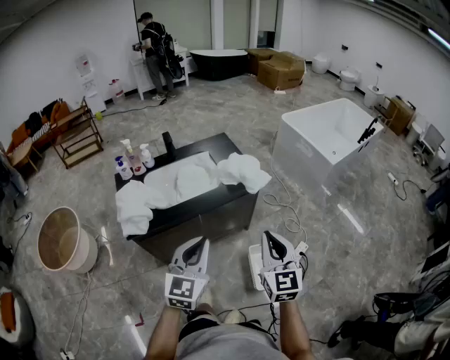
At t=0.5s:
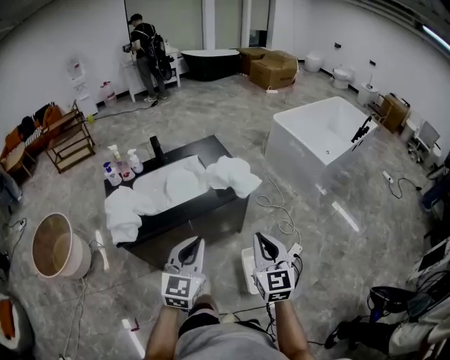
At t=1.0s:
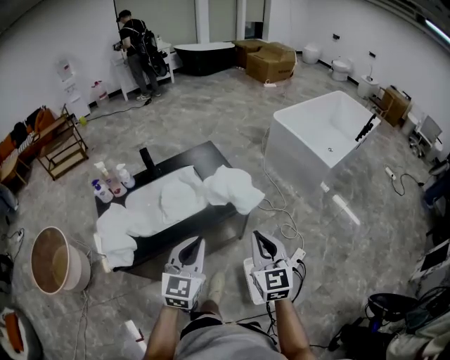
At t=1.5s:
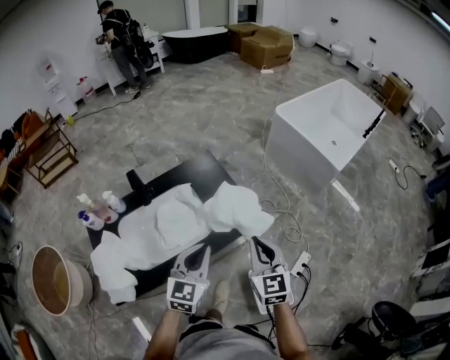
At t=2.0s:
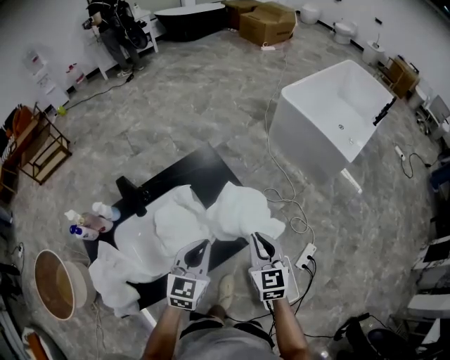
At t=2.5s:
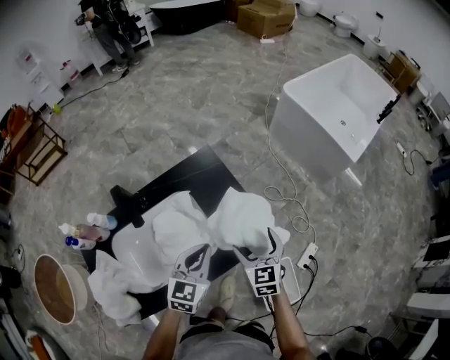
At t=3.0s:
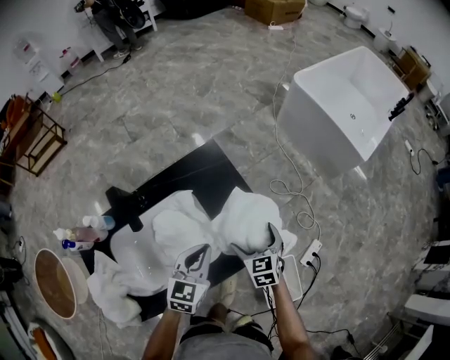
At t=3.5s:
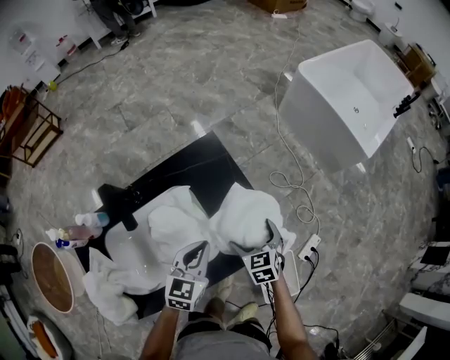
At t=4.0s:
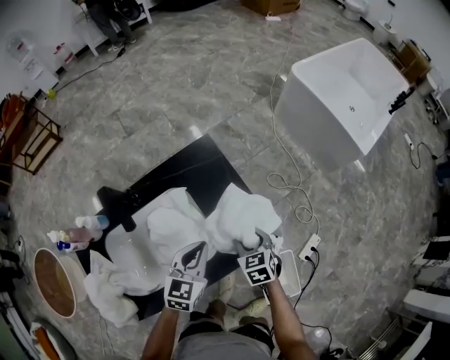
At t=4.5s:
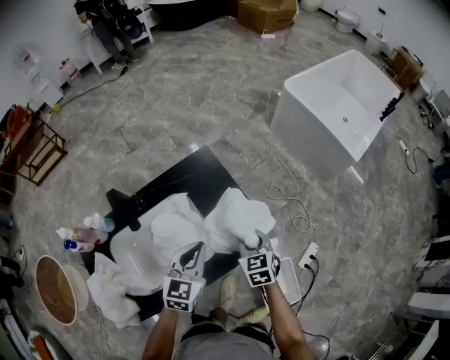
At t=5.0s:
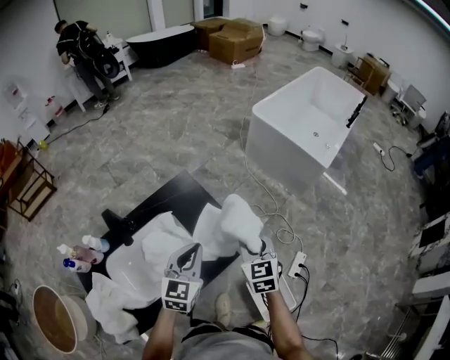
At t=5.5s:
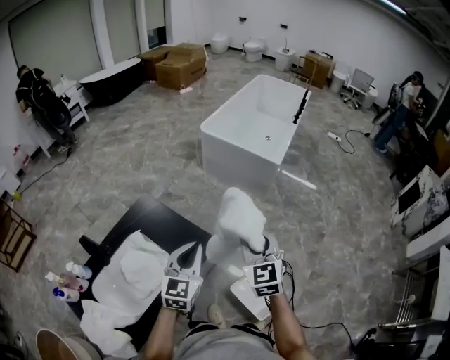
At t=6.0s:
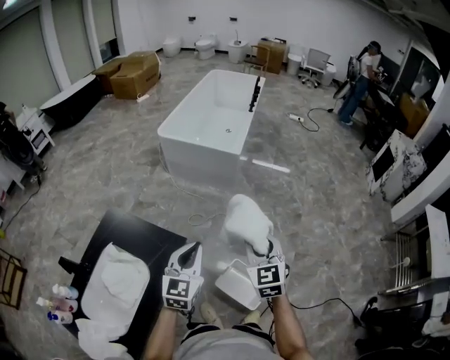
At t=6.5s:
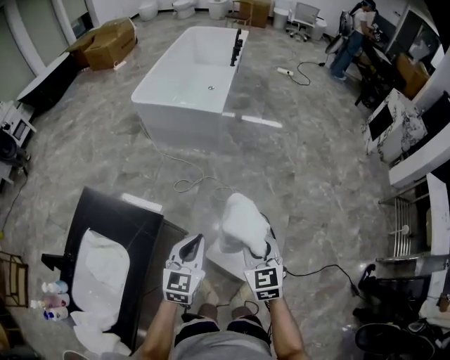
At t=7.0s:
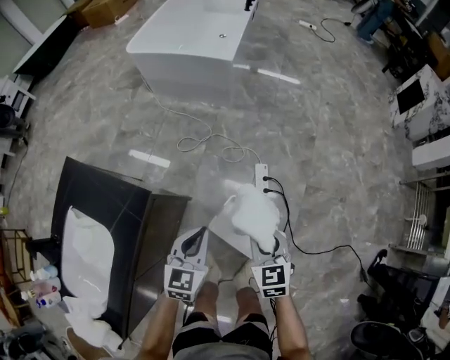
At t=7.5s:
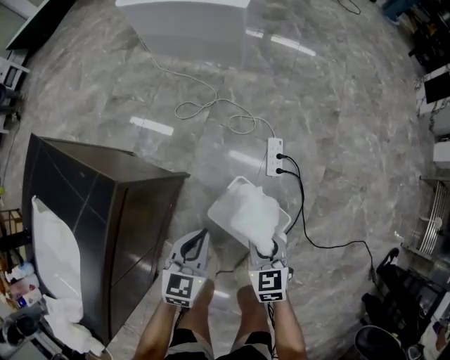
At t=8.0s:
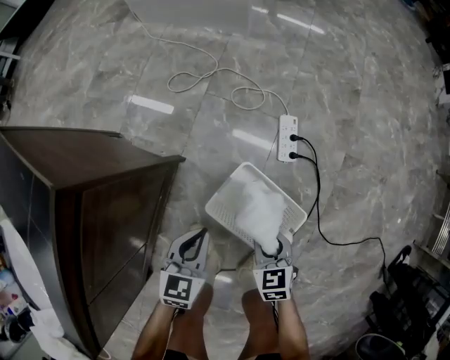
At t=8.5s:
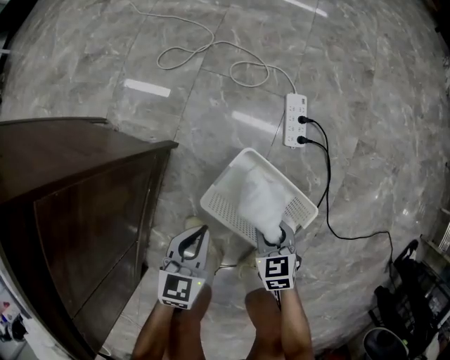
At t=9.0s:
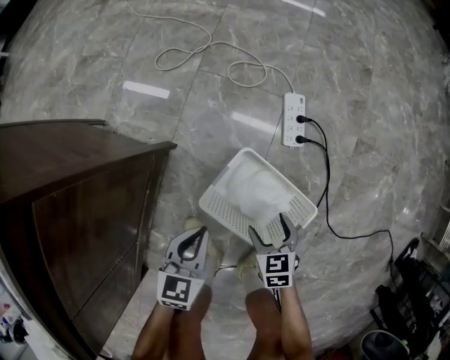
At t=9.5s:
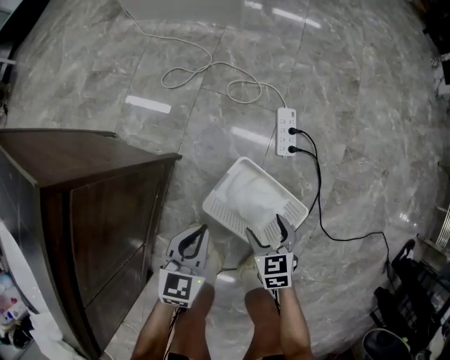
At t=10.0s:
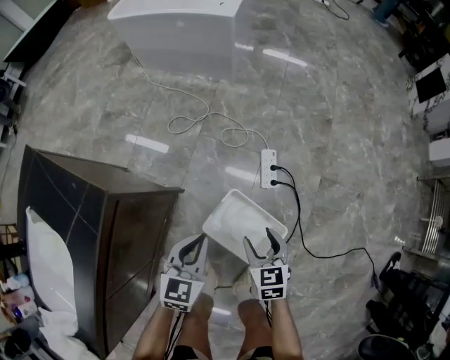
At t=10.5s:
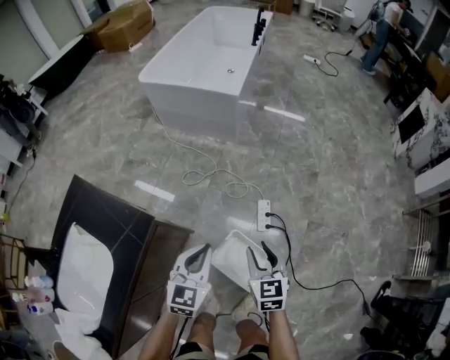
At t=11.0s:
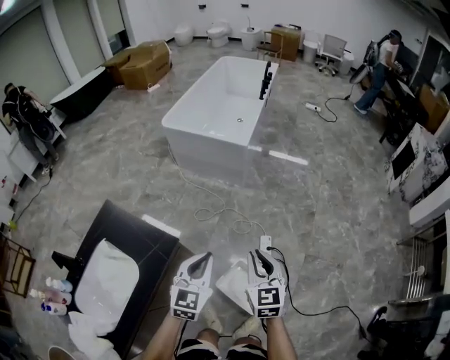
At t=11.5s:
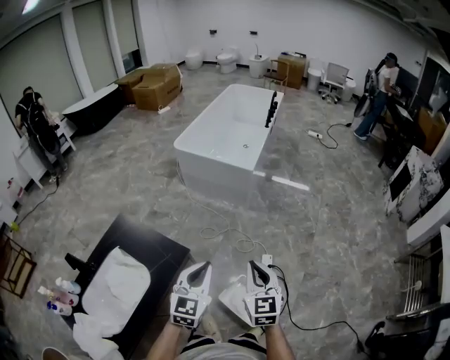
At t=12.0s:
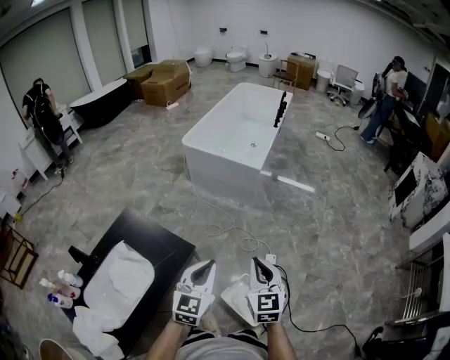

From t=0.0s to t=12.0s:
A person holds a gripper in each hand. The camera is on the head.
From t=0.0s to t=2.0s: Both grippers are carried forward, roughly 40 cm.
From t=2.0s to t=4.0s: The right gripper shifts roughly 20 cm downward and forward, turns by some 30 degrees, and opens, then closes once more. Meanwhile the left gripper moves downward and forward, roughly 15 cm.
From t=4.0s to t=6.0s: The left gripper ends up some 35 cm from where it was, and swivels roughly 40 degrees. The right gripper shifts by about 50 cm, and tilts its fingers about 30 degrees upward.
From t=6.0s to t=8.0s: The grippers both shift downward by about 70 cm. The right gripper tips its fingers downward by some 30 degrees. Meanwhile the left gripper swivels roughly 30 degrees.
From t=8.0s to t=10.0s: The grippers both shift upward by roughly 15 cm.
From t=10.0s to t=12.0s: Both grippers travel together upward, approximately 50 cm. The right gripper turns by roughly 30 degrees, and closes up. Meanwhile the left gripper swivels approximately 20 degrees.

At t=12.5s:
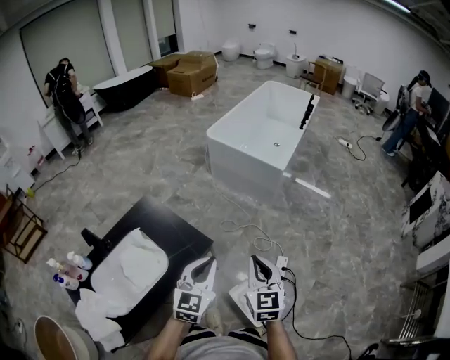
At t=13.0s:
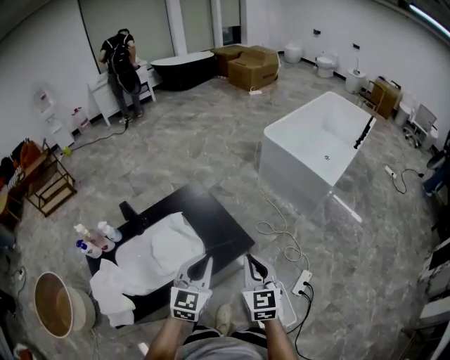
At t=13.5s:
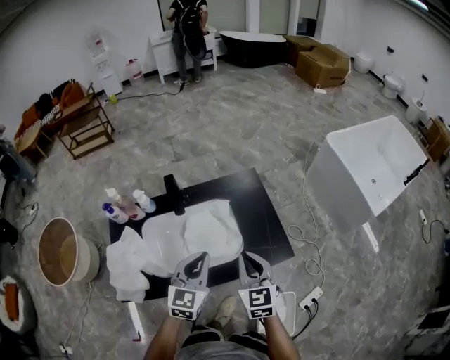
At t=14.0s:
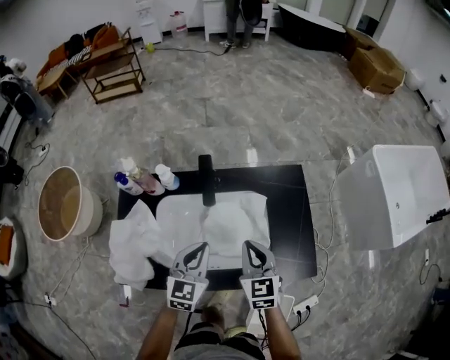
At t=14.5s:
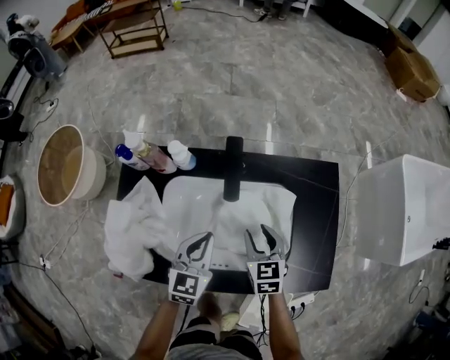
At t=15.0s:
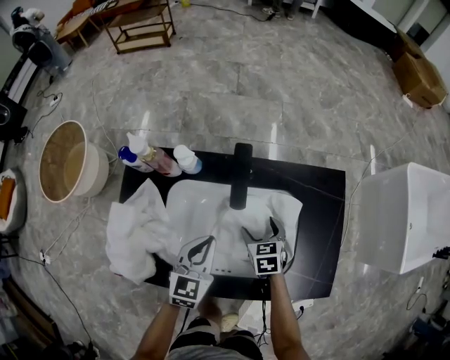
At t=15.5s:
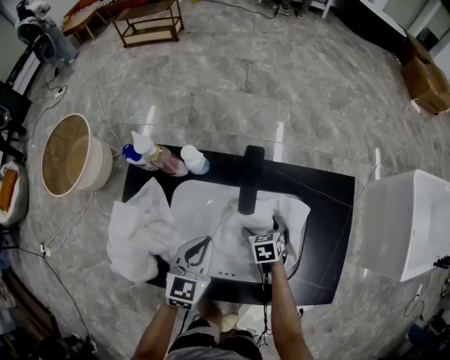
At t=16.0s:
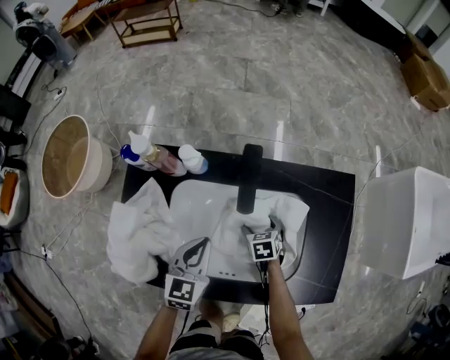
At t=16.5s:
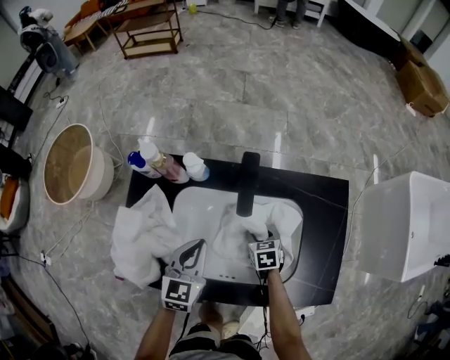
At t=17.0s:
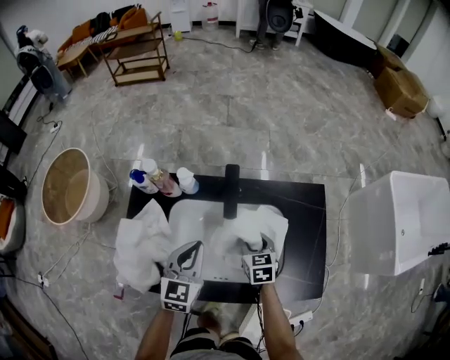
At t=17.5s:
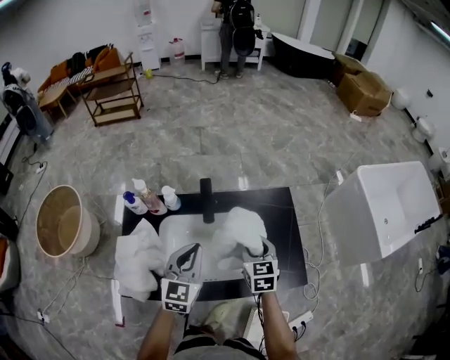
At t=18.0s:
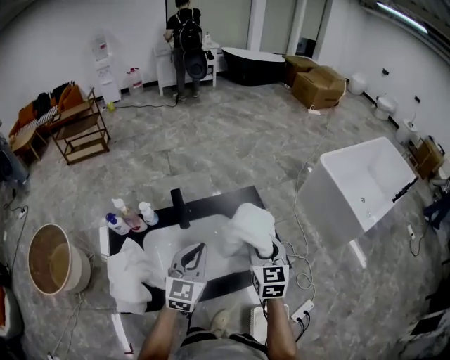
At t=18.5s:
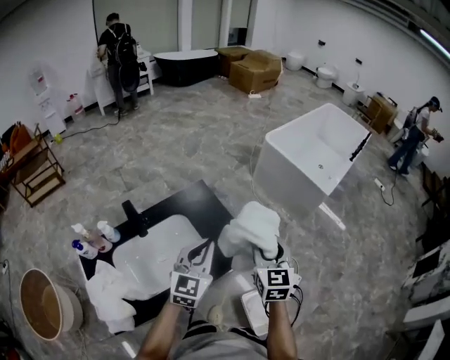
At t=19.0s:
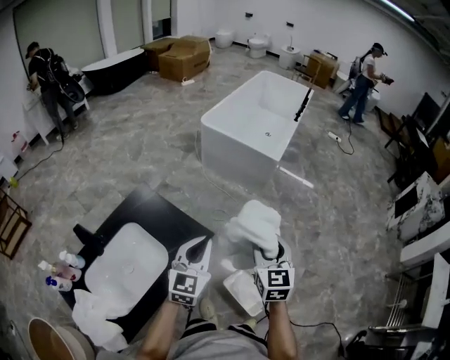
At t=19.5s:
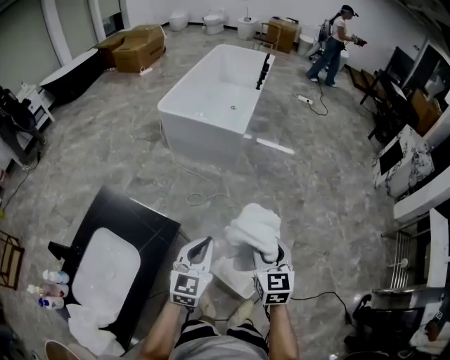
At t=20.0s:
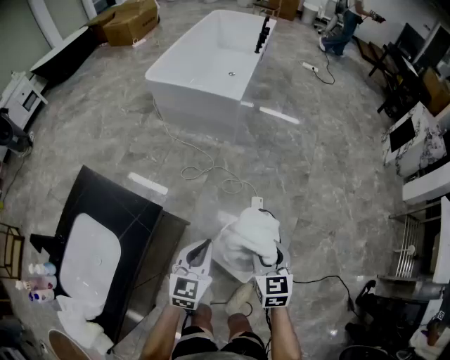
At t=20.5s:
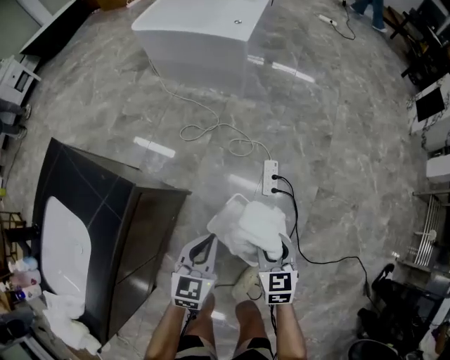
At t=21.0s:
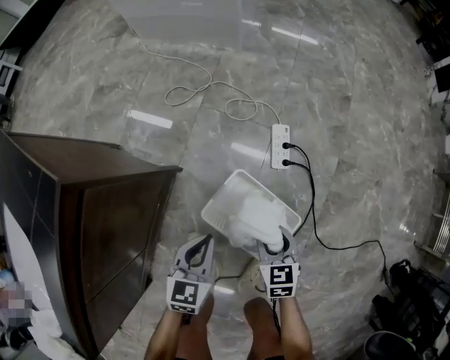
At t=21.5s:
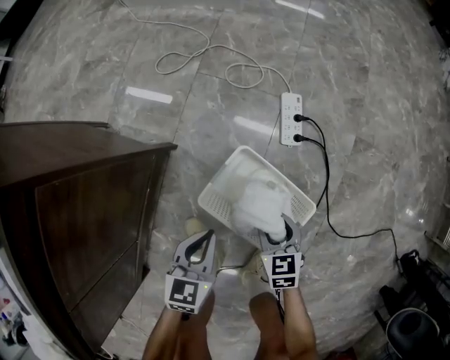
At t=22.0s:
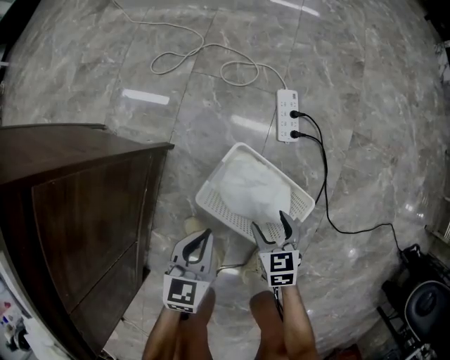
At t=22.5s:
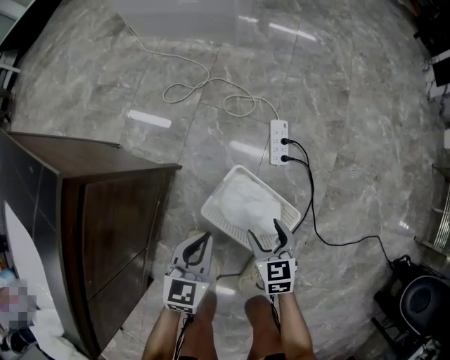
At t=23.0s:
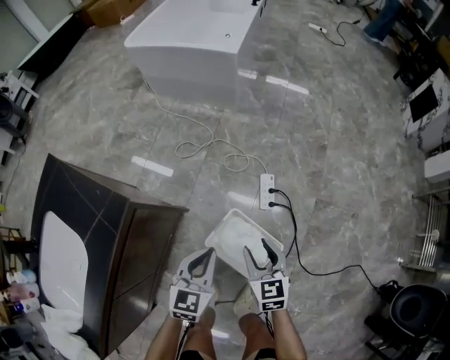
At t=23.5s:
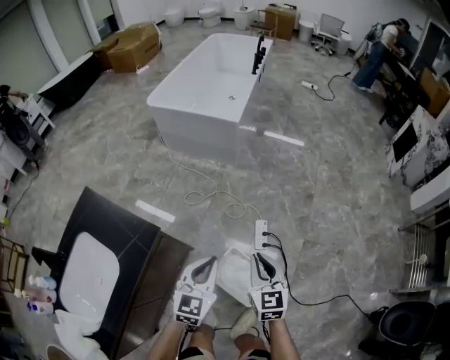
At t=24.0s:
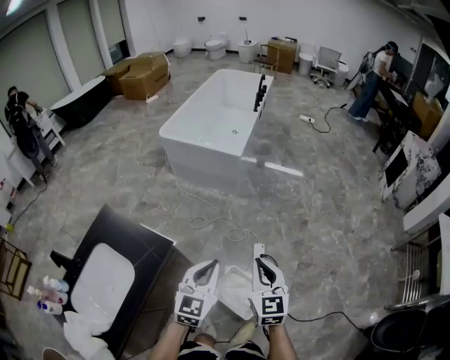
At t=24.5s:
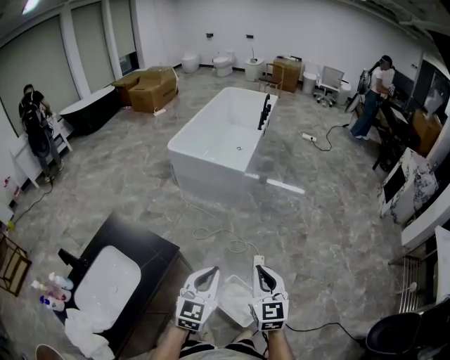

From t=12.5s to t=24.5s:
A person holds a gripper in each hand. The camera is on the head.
From t=12.5s to t=14.5s: Both grippers are carried some 50 cm. The left gripper rotates about 60 degrees, while the right gripper swivels about 60 degrees.
From t=14.5s to t=16.5s: The right gripper travels downward by about 15 cm, changes its angle by roughly 20 degrees, and opens and closes again. Meanwhile the left gripper moves to the left, roughly 5 cm.
From t=16.5s to t=18.5s: The right gripper goes approximately 40 cm upward, and angles its fingers upward, by some 40 degrees. The left gripper ends up some 40 cm from where it was, and changes its angle by some 50 degrees.
From t=18.5s to t=20.5s: The grippers both shift downward by some 40 cm. The right gripper swivels some 40 degrees, while the left gripper swivels about 40 degrees.
From t=20.5s to t=22.5s: Both grippers travel together downward, some 25 cm.
From t=22.5s to t=24.5s: The grippers both shift upward by some 60 cm. The right gripper tilts its fingers some 30 degrees upward, and closes its fingers. Meanwhile the left gripper changes its angle by approximately 30 degrees.

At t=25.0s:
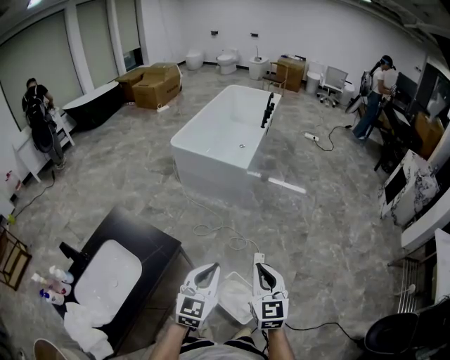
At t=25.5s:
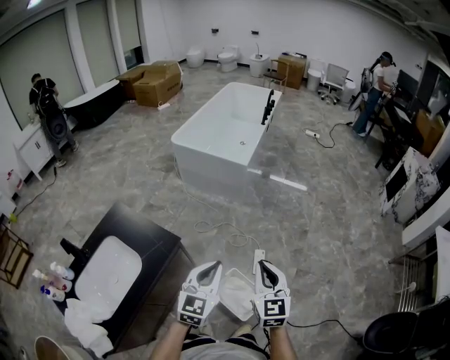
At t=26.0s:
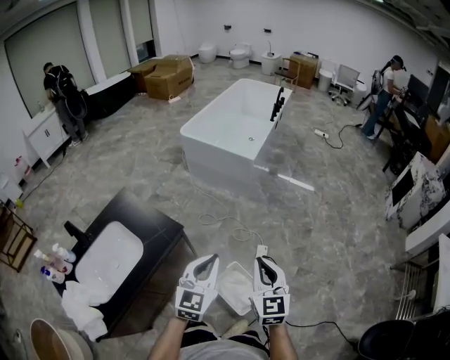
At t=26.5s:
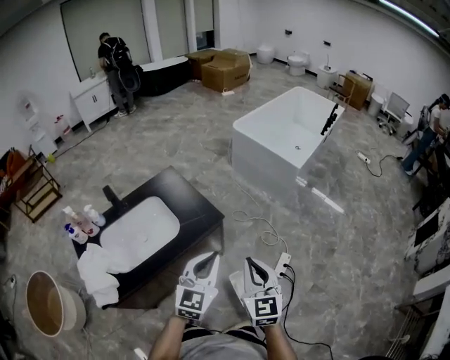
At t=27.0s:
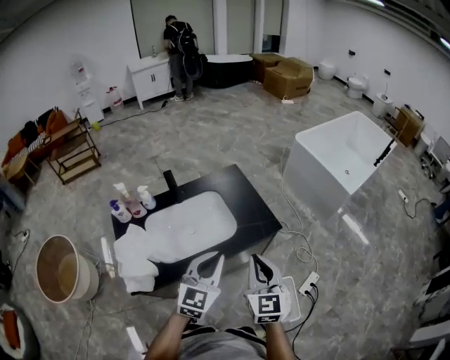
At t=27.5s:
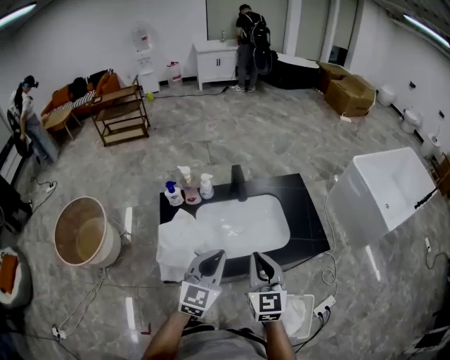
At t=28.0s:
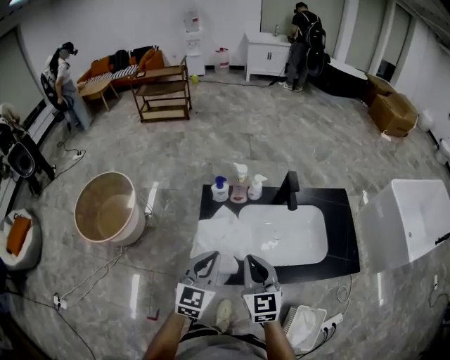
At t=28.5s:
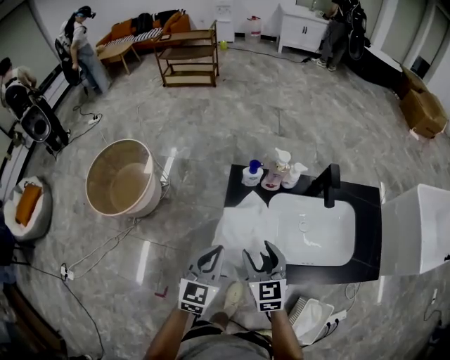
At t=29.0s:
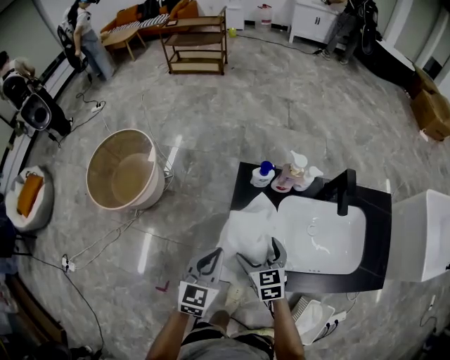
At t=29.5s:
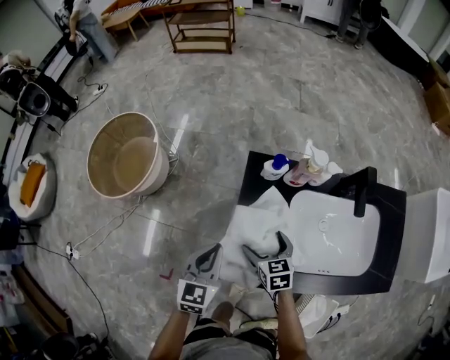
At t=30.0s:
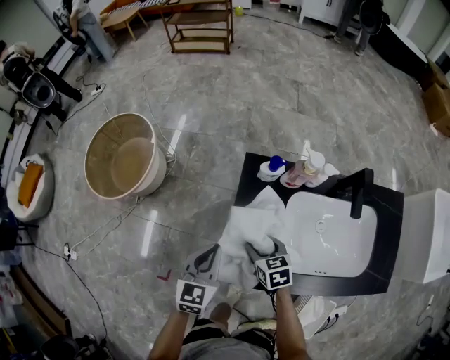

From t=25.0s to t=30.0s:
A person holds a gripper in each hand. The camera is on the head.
From t=25.0s to t=27.5s: The two grippers travel together, some 60 cm. The left gripper swivels approximately 50 degrees; the right gripper rotates some 50 degrees.
From t=27.5s to t=30.0s: The right gripper ends up approximately 50 cm from where it was, points its fingers approximately 40 degrees further downward, and opens. Meanwhile the left gripper shifts by some 40 cm, and turns by roughly 40 degrees.
